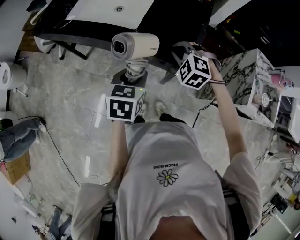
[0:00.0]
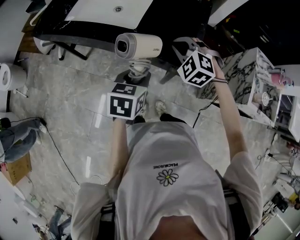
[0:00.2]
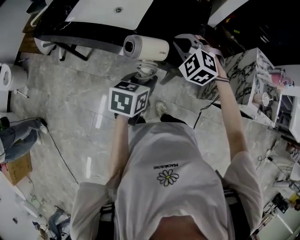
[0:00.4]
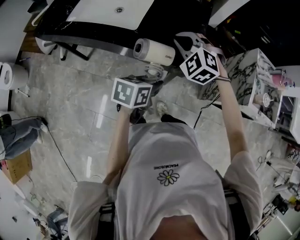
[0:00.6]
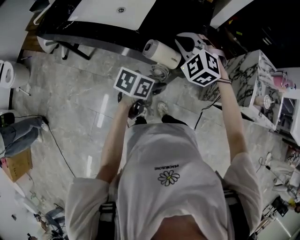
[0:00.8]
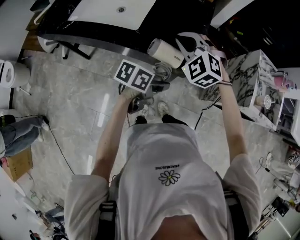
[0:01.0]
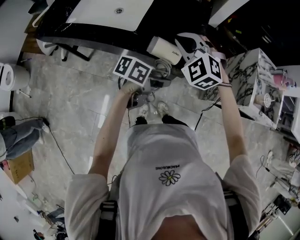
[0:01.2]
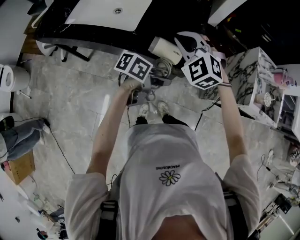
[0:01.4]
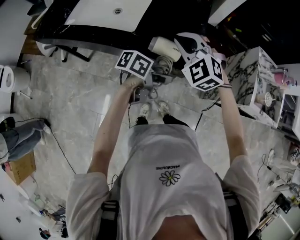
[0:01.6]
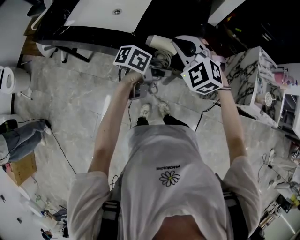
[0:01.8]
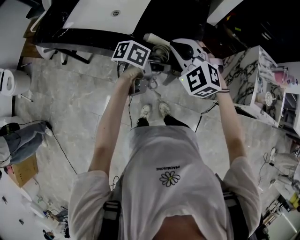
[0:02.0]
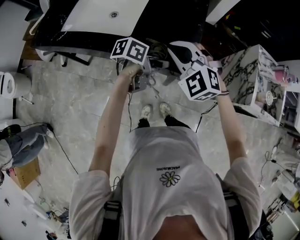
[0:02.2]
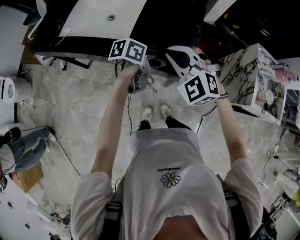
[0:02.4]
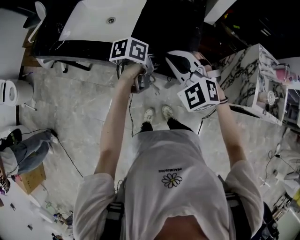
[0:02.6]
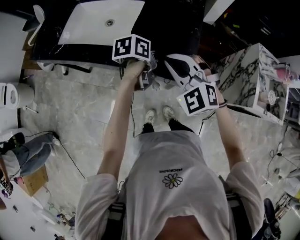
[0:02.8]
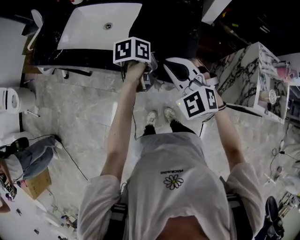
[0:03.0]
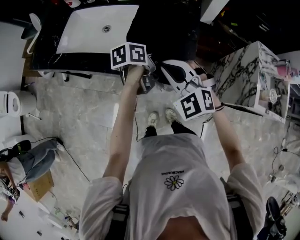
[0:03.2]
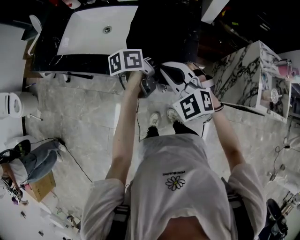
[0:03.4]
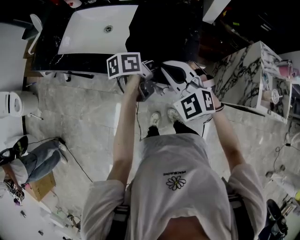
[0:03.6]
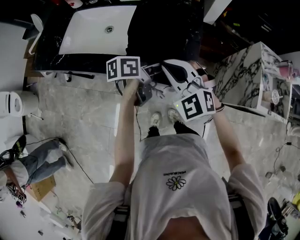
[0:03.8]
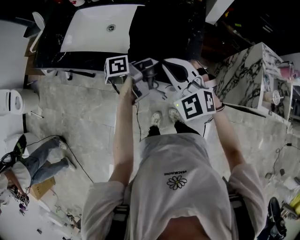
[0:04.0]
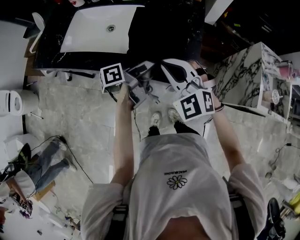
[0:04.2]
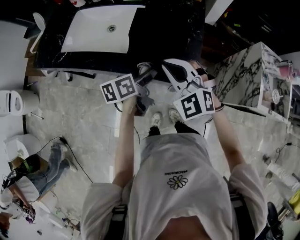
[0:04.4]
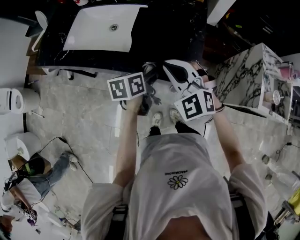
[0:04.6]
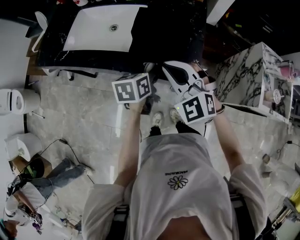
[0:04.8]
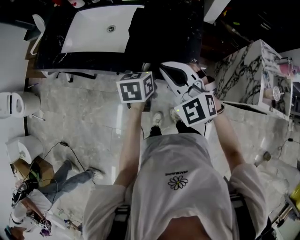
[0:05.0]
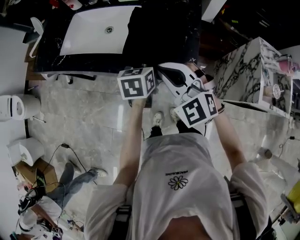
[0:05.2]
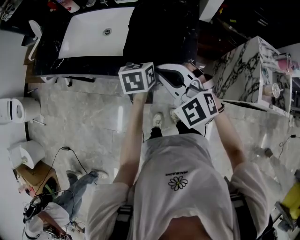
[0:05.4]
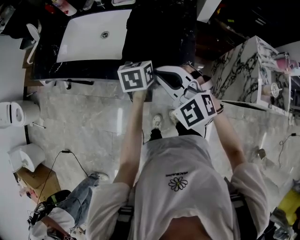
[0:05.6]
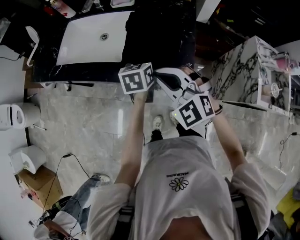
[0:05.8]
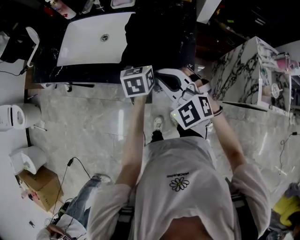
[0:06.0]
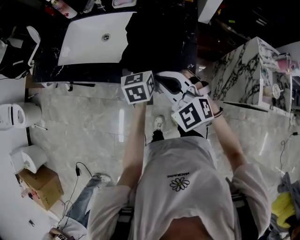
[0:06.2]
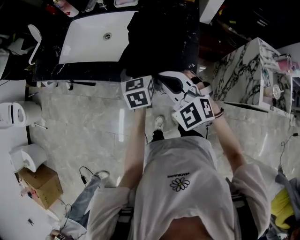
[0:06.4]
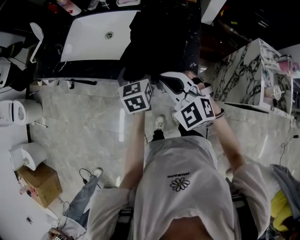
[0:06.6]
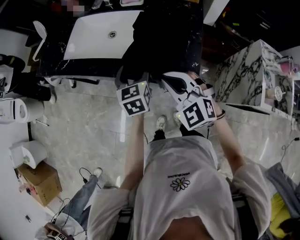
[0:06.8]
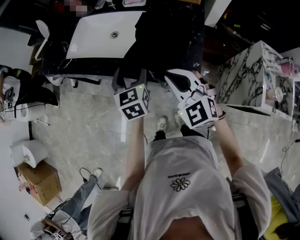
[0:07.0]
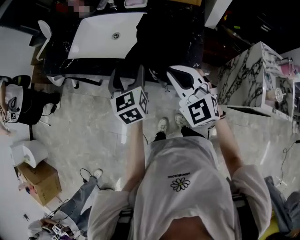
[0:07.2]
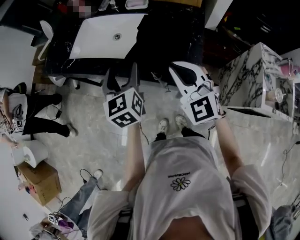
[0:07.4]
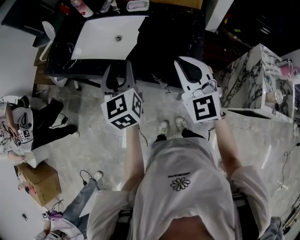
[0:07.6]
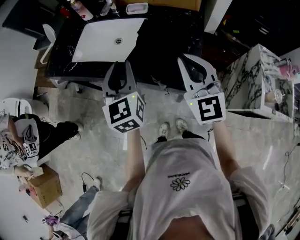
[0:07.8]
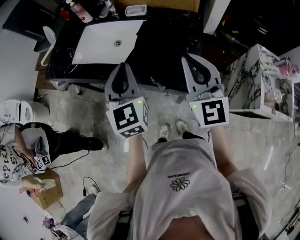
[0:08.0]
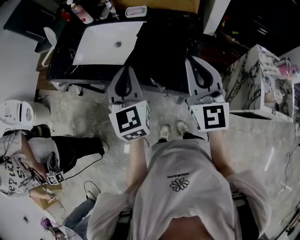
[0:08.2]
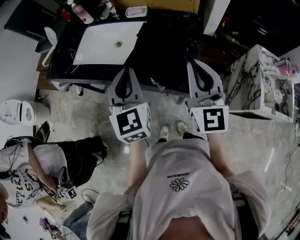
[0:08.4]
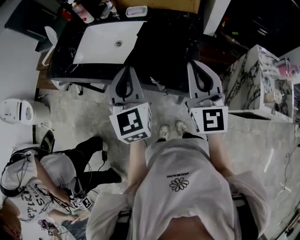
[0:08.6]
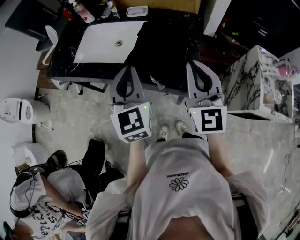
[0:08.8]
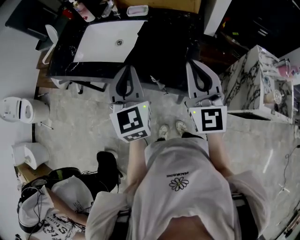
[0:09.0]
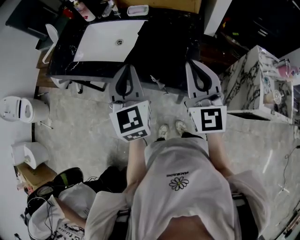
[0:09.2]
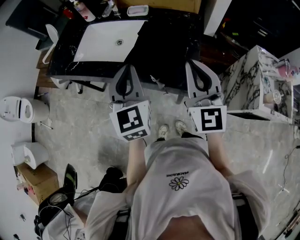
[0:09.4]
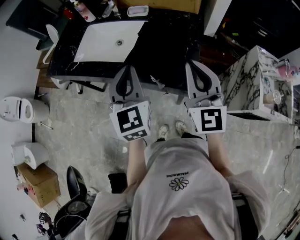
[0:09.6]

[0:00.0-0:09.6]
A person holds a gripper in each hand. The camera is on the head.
0:00.0 to 0:01.6: The right gripper goes some 10 cm upward, and changes its angle by approximately 20 degrees; the left gripper changes place by roughly 15 cm, and turns by some 60 degrees.
0:01.6 to 0:03.2: The left gripper heads forward and to the left, covering roughly 15 cm, and swivels roughly 30 degrees.
0:03.2 to 0:04.8: The left gripper heads backward and to the left, covering some 10 cm, rotates about 30 degrees, and opens, then closes once more.
0:04.8 to 0:06.4: The left gripper shifts some 5 cm forward, and turns by approximately 20 degrees.
0:06.4 to 0:08.0: The left gripper travels upward by roughly 20 cm, changes its angle by about 30 degrees, and closes its fingers. Meanwhile the right gripper moves upward and to the right, some 15 cm, and rotates roughly 40 degrees.
0:08.0 to 0:09.6: The grippers make only small movements.

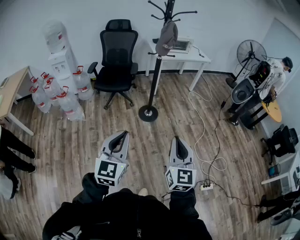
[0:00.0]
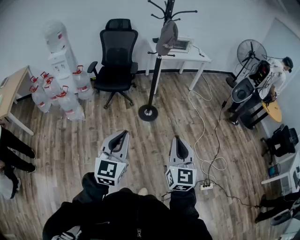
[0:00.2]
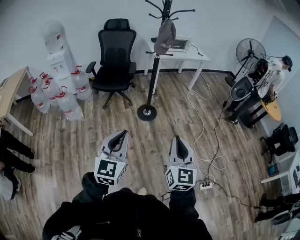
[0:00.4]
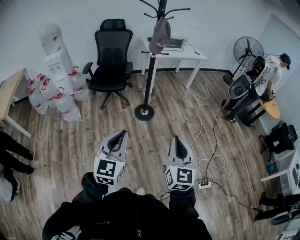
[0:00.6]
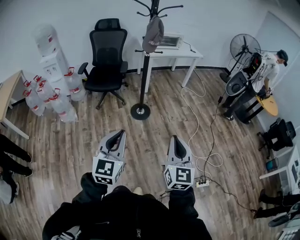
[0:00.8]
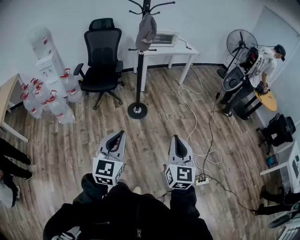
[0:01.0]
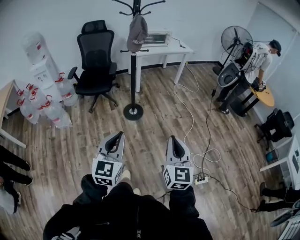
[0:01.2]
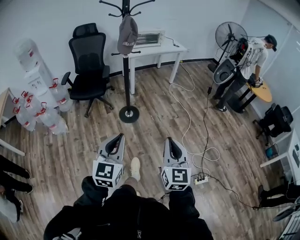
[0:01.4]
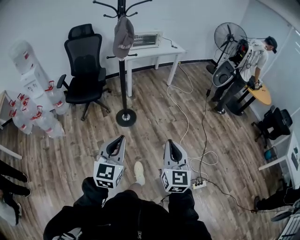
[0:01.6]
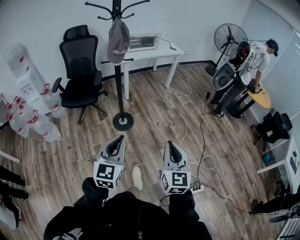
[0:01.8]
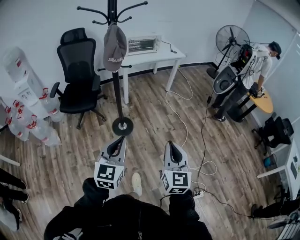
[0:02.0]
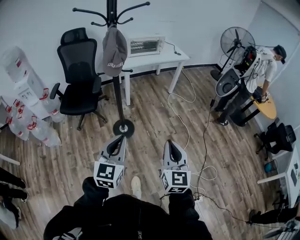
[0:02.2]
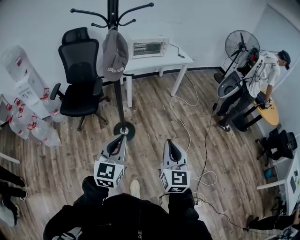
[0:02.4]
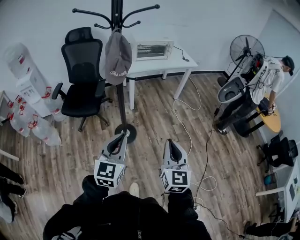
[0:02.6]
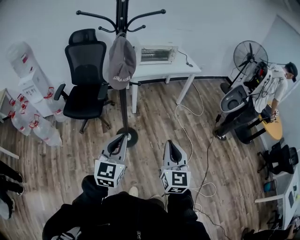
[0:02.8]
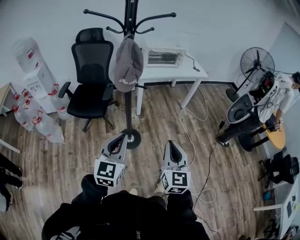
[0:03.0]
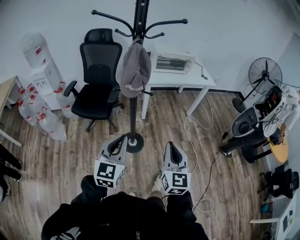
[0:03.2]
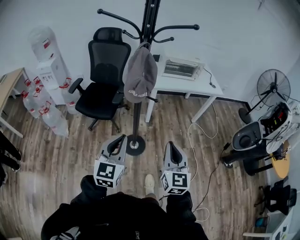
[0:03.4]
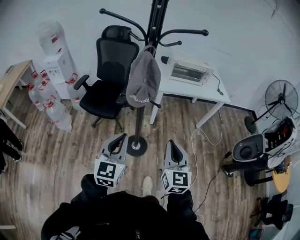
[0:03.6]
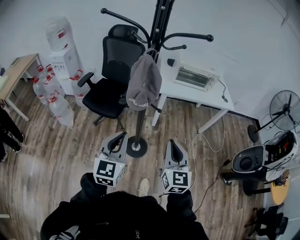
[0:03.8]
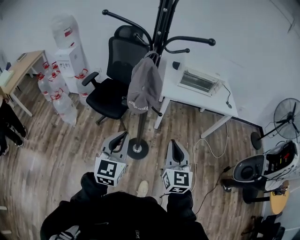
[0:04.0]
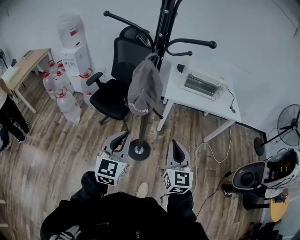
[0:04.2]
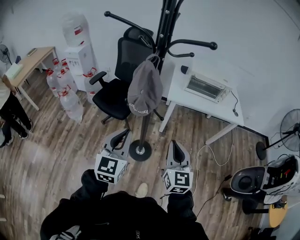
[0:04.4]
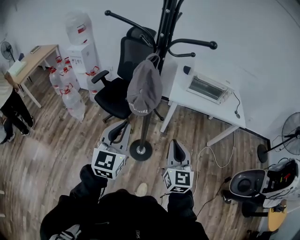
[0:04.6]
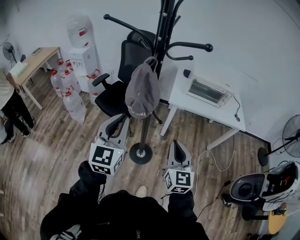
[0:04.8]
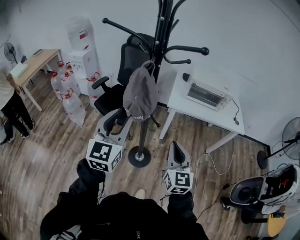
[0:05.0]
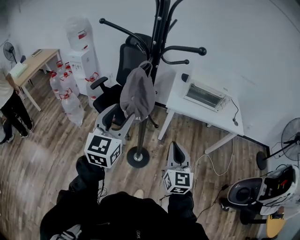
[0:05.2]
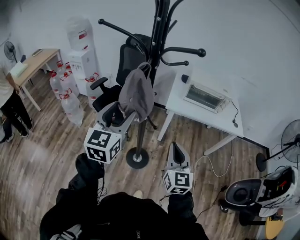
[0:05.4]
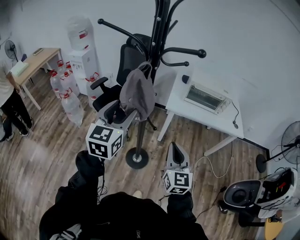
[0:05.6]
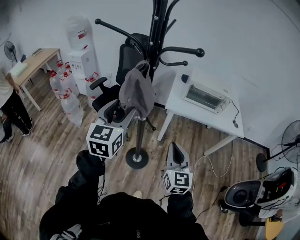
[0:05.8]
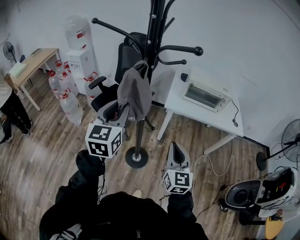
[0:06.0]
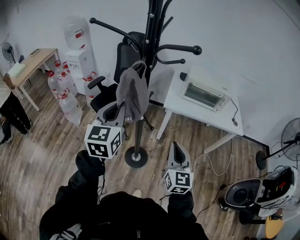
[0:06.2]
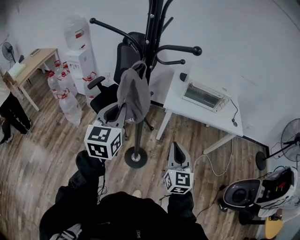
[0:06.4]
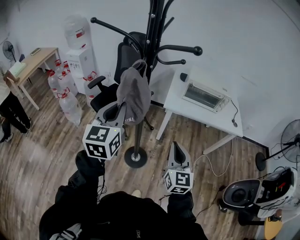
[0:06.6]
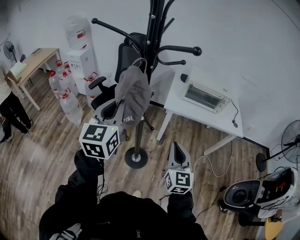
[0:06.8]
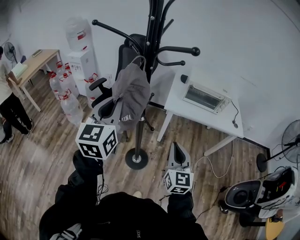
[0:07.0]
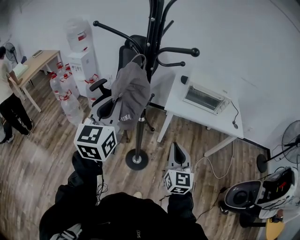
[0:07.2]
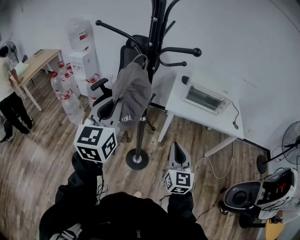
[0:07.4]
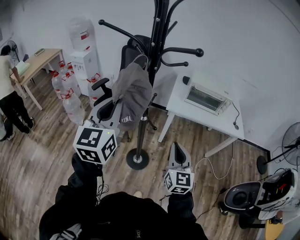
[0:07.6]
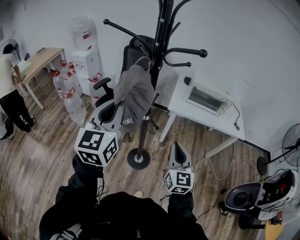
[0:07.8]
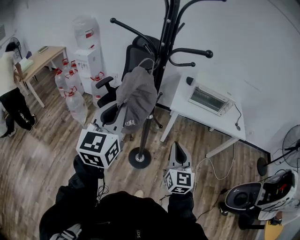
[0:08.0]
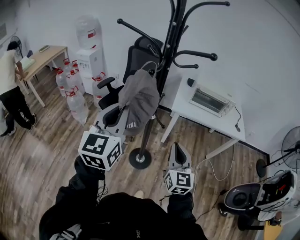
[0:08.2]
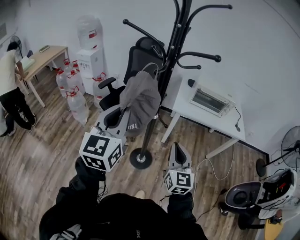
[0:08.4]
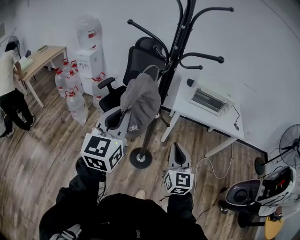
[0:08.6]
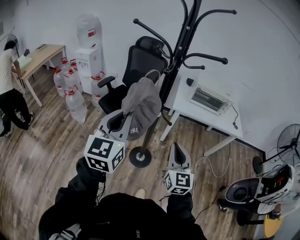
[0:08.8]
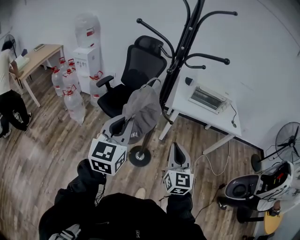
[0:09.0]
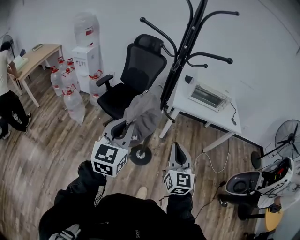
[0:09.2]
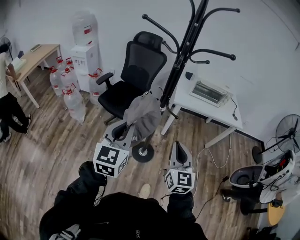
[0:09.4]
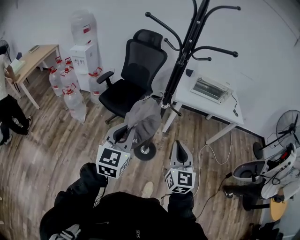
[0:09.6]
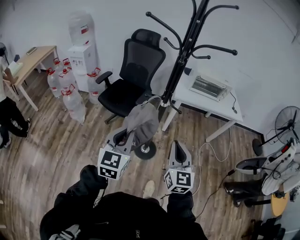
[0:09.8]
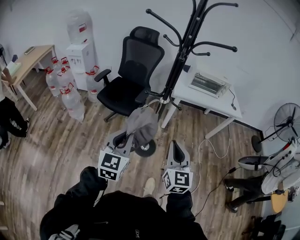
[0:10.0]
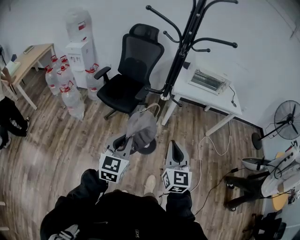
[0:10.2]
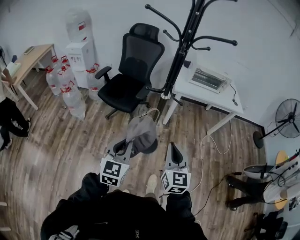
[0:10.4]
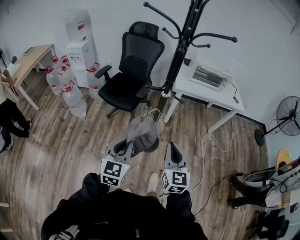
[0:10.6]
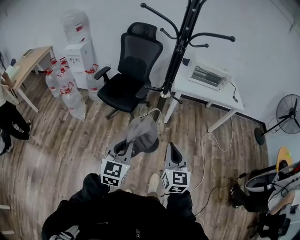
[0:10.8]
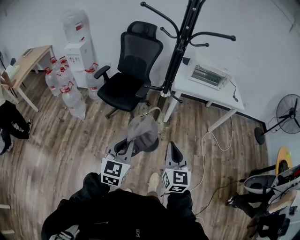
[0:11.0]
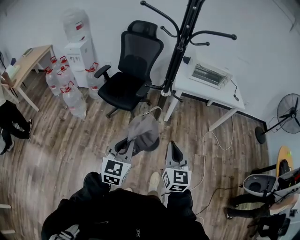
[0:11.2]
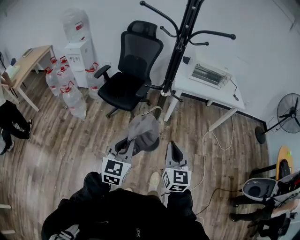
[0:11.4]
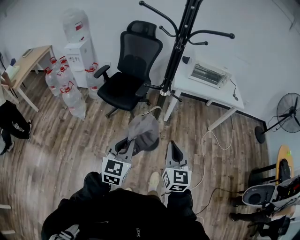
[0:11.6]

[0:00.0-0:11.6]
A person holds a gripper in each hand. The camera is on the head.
0:00.0 to 0:01.4: The grippers both shift to the right and forward by some 20 cm.
0:01.4 to 0:02.8: The two grippers travel together, forward, about 40 cm.
0:02.8 to 0:04.4: The right gripper changes place by roughly 30 cm, and swivels roughly 30 degrees, while the left gripper shifts by some 20 cm, and swivels about 30 degrees.
0:04.4 to 0:05.8: The right gripper shifts by roughly 5 cm. The left gripper goes approximately 15 cm forward and upward, and opens up.
0:05.8 to 0:07.2: The left gripper travels upward by roughly 5 cm, and closes.
0:07.2 to 0:08.8: The right gripper goes approximately 15 cm to the left and backward; the left gripper goes roughly 10 cm backward and to the left.
0:08.8 to 0:10.2: The left gripper moves downward, backward and to the left, about 20 cm. The right gripper shifts approximately 15 cm backward and to the left.
0:10.2 to 0:11.6: The grippers stay close to where they were, moving slightly.

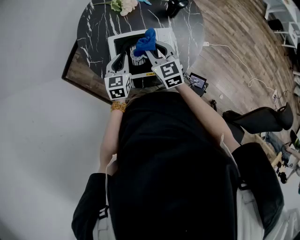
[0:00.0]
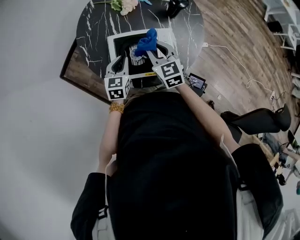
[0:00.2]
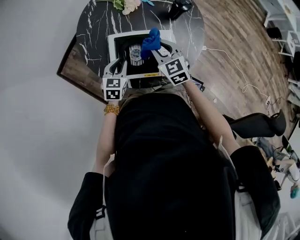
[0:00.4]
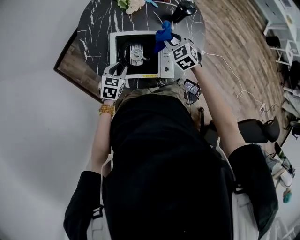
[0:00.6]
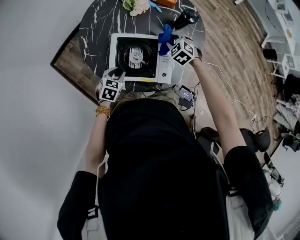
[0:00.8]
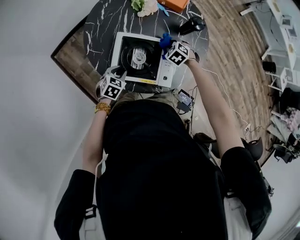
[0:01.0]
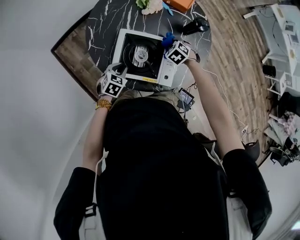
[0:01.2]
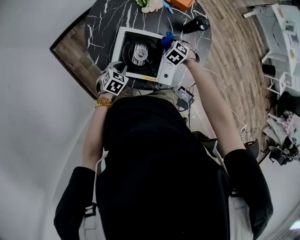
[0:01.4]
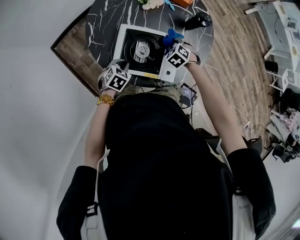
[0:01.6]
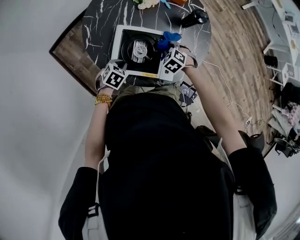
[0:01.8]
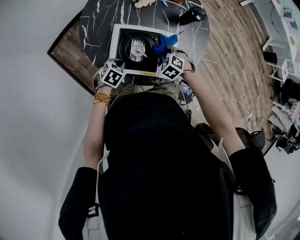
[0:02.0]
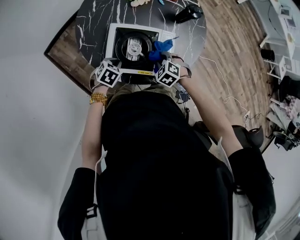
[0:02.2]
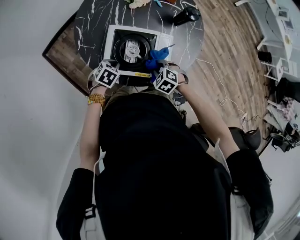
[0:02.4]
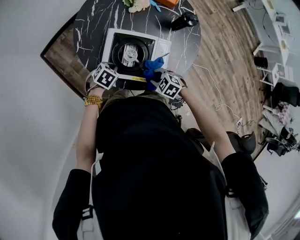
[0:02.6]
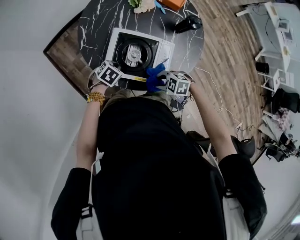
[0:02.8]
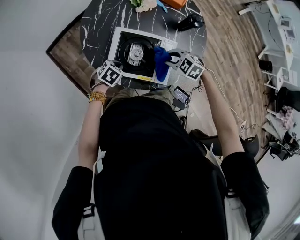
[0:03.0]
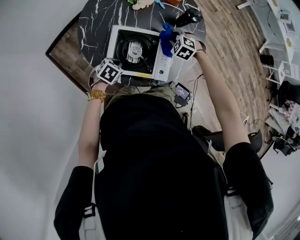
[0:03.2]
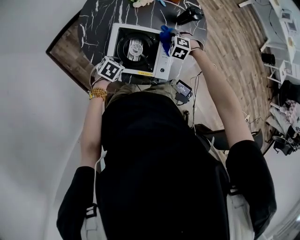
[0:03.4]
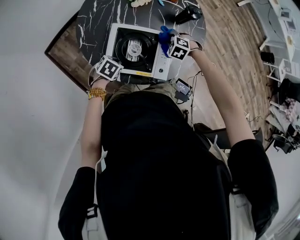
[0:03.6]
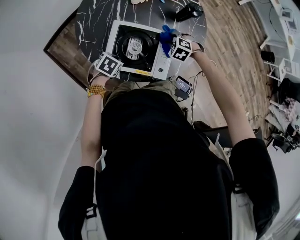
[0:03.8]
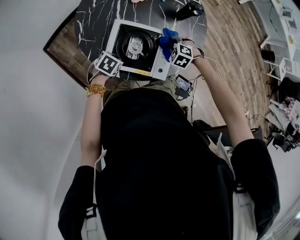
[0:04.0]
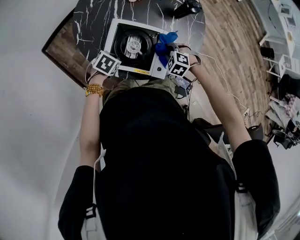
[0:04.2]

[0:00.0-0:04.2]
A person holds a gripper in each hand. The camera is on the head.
0:00.0 to 0:01.4: The left gripper moves downward and backward, approximately 10 cm, and rotates roughly 30 degrees. The right gripper heads downward and forward, covering about 15 cm, and points its fingers some 50 degrees further downward.
0:01.4 to 0:02.8: The right gripper shifts by approximately 20 cm, and swivels approximately 40 degrees.
0:02.8 to 0:04.2: The right gripper swivels approximately 30 degrees.
